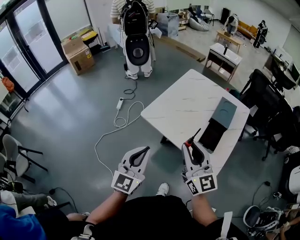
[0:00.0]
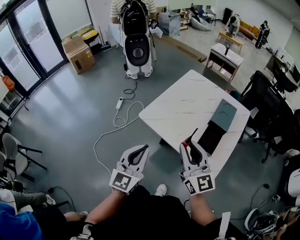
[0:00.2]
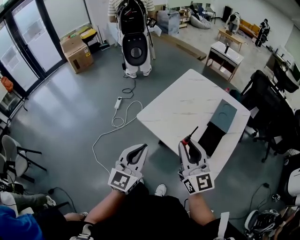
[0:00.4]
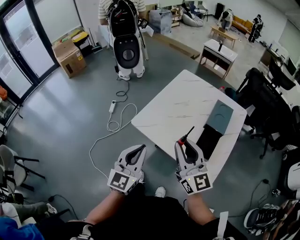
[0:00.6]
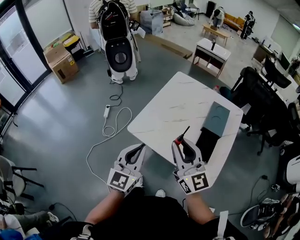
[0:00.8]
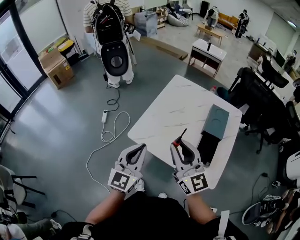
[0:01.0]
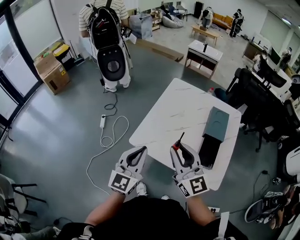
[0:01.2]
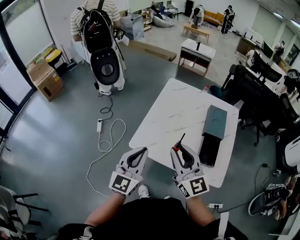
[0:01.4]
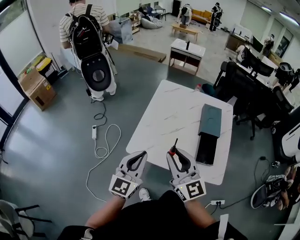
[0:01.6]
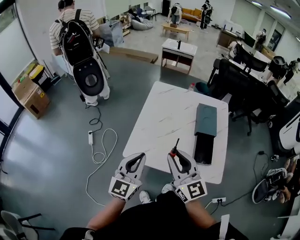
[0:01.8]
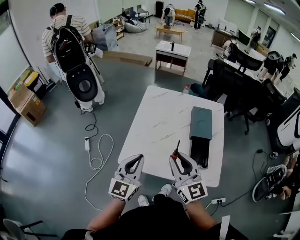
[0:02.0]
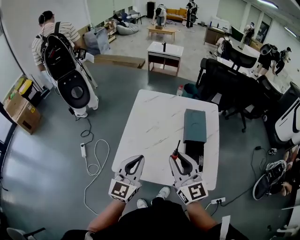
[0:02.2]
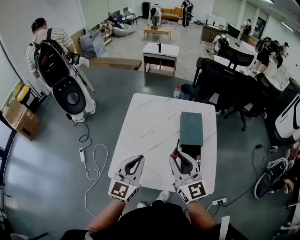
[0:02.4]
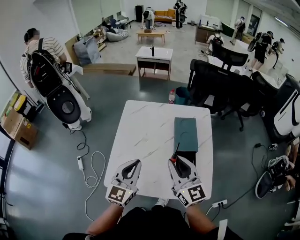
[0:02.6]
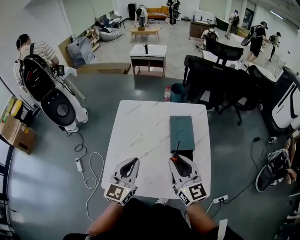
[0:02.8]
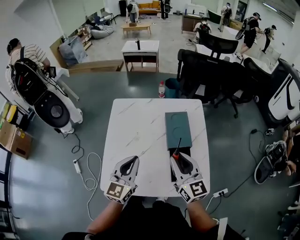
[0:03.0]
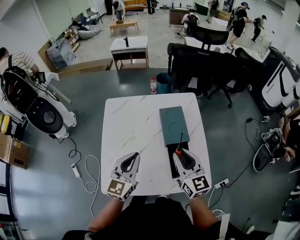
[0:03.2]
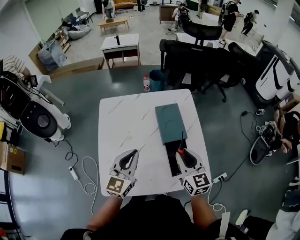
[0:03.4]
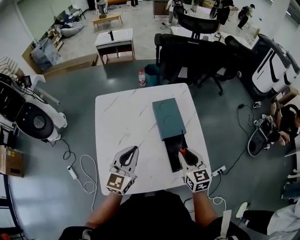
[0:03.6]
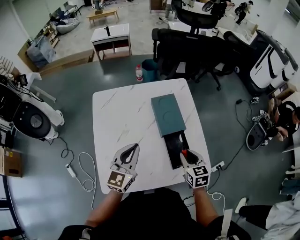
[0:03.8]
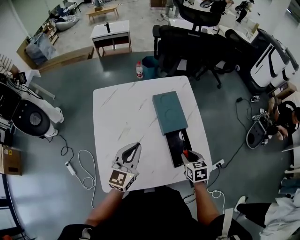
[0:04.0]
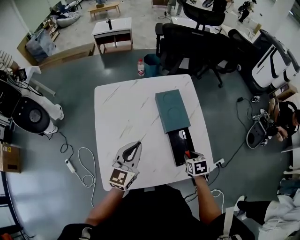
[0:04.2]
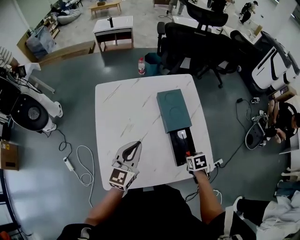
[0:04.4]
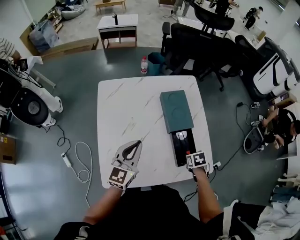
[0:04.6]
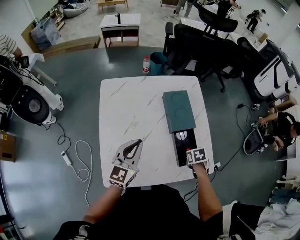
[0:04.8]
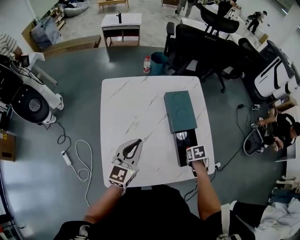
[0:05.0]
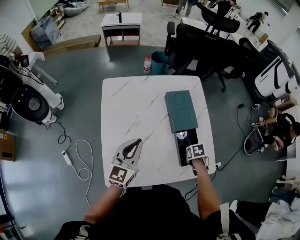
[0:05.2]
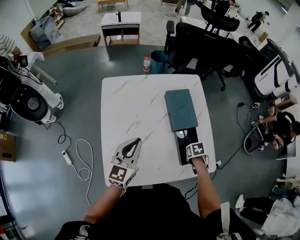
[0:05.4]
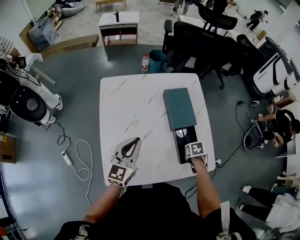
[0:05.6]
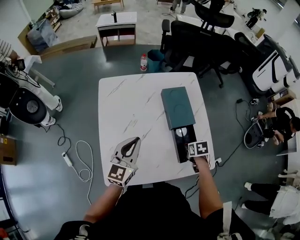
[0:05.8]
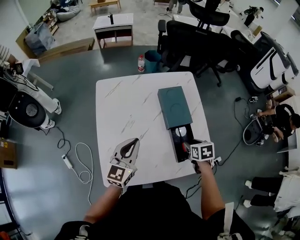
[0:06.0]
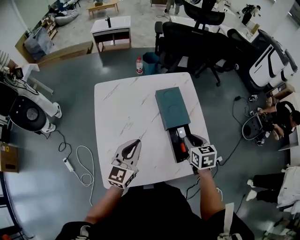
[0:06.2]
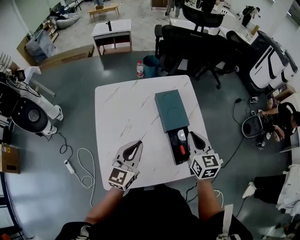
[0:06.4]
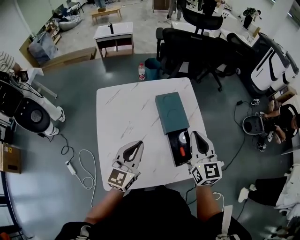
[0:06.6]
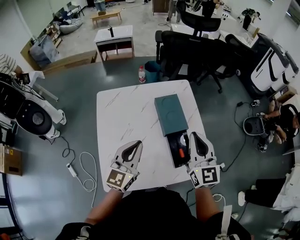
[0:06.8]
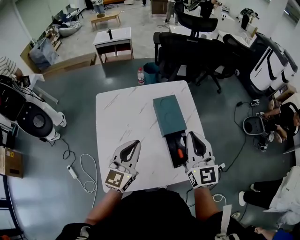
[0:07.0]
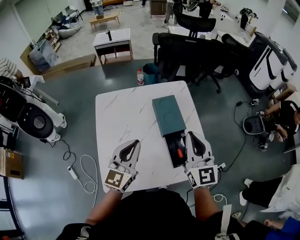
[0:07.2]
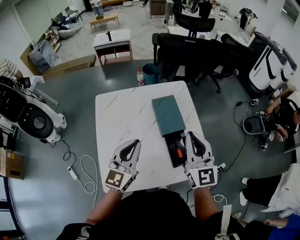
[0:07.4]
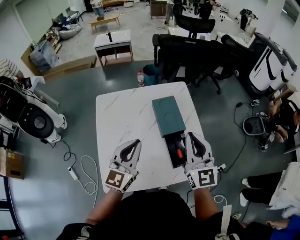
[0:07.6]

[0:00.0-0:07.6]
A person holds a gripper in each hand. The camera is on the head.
0:00.0 to 0:01.6: The right gripper moves forward and to the left, roughly 20 cm. Meanwhile the left gripper is displaced forward by about 20 cm, and rotates roughly 20 degrees.
0:01.6 to 0:03.0: The right gripper heads to the right and forward, covering roughly 25 cm, and rotates roughly 20 degrees. Meanwhile the left gripper moves forward and to the right, about 25 cm.
0:03.0 to 0:04.6: The left gripper moves downward, some 5 cm. Meanwhile the right gripper is displaced downward by approximately 30 cm, and angles its fingers downward, by some 70 degrees.
0:04.6 to 0:06.0: The right gripper goes about 10 cm upward.
0:06.0 to 0:07.6: The right gripper moves upward, about 30 cm, angles its fingers upward, by some 60 degrees, and closes up. The left gripper heads upward and to the right, covering about 10 cm.

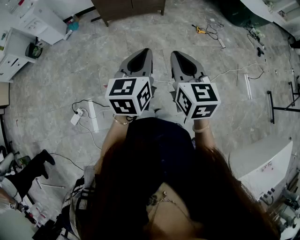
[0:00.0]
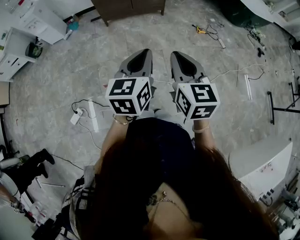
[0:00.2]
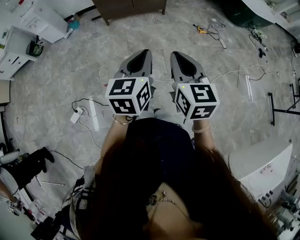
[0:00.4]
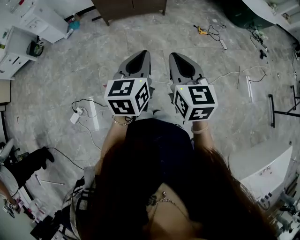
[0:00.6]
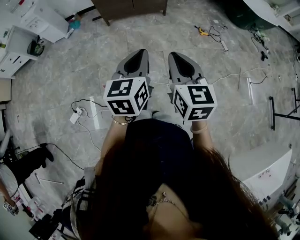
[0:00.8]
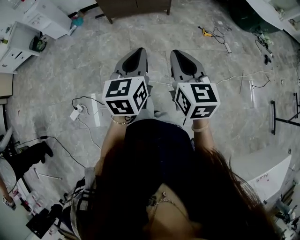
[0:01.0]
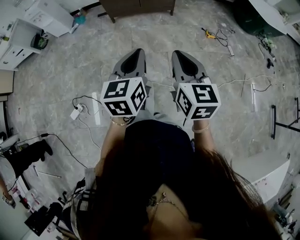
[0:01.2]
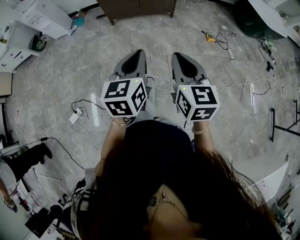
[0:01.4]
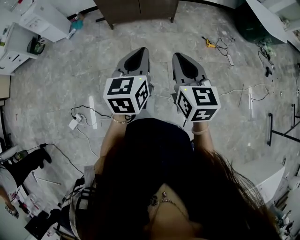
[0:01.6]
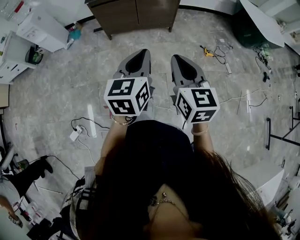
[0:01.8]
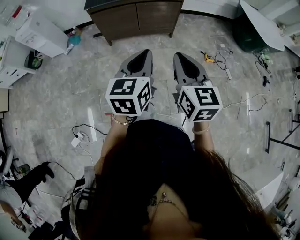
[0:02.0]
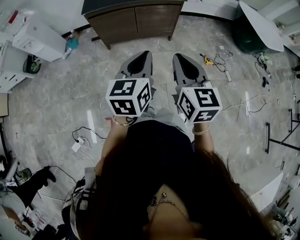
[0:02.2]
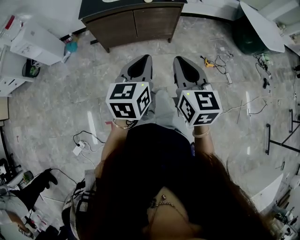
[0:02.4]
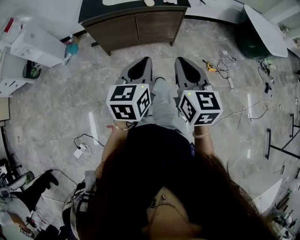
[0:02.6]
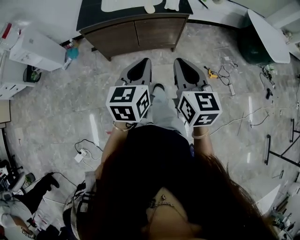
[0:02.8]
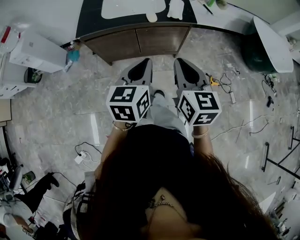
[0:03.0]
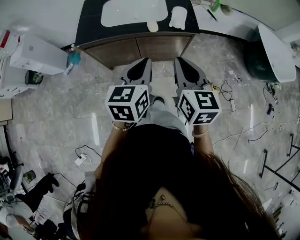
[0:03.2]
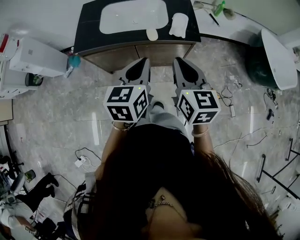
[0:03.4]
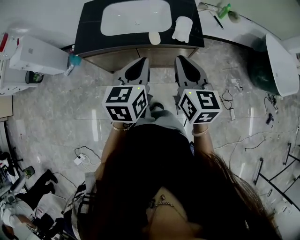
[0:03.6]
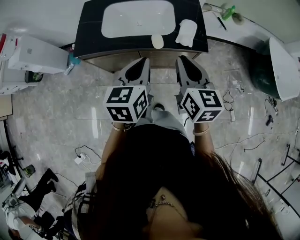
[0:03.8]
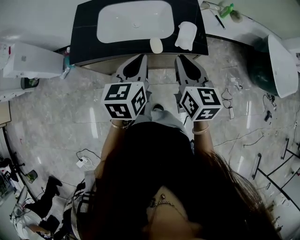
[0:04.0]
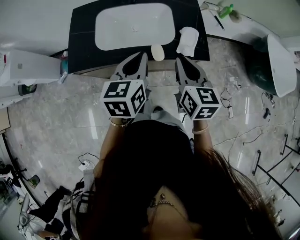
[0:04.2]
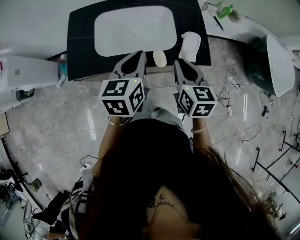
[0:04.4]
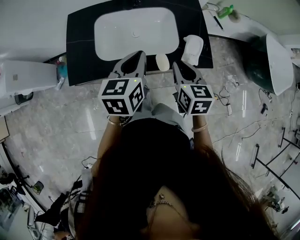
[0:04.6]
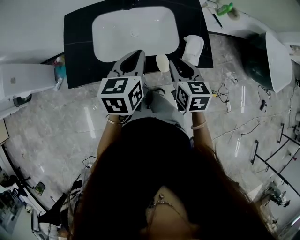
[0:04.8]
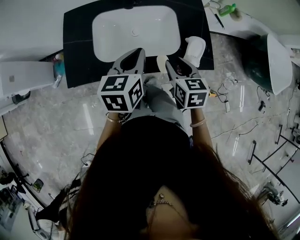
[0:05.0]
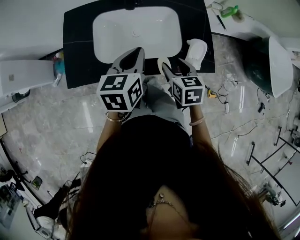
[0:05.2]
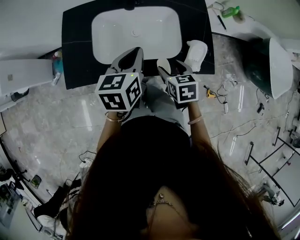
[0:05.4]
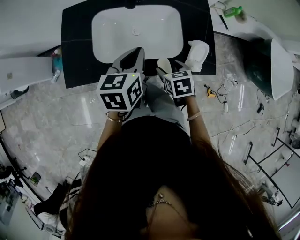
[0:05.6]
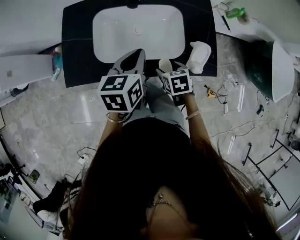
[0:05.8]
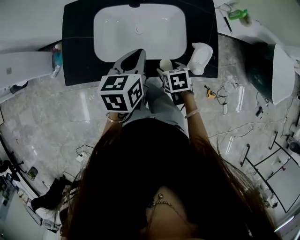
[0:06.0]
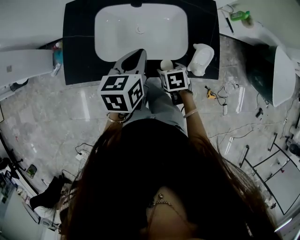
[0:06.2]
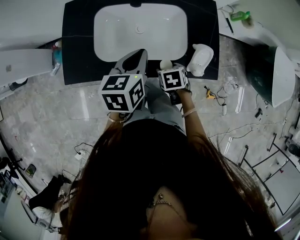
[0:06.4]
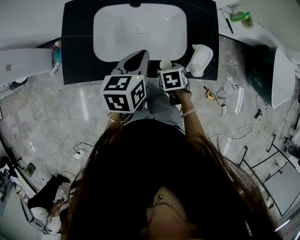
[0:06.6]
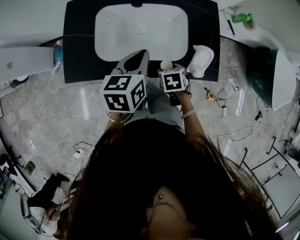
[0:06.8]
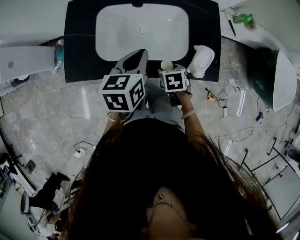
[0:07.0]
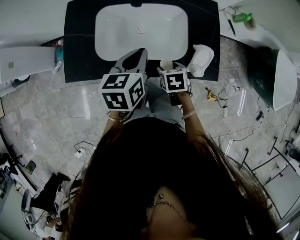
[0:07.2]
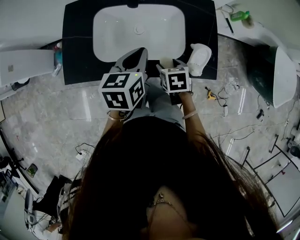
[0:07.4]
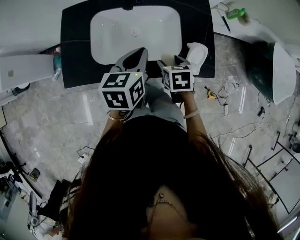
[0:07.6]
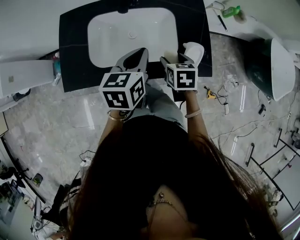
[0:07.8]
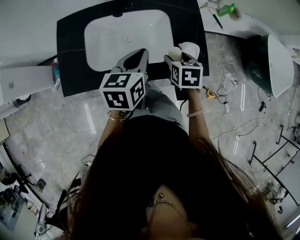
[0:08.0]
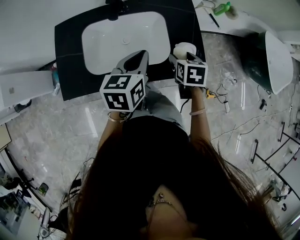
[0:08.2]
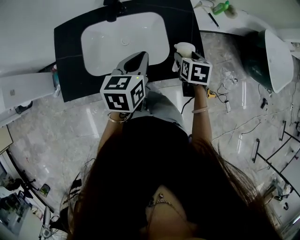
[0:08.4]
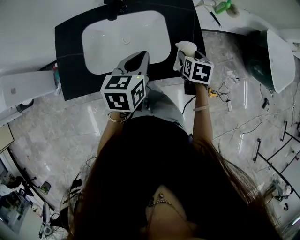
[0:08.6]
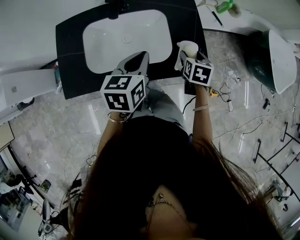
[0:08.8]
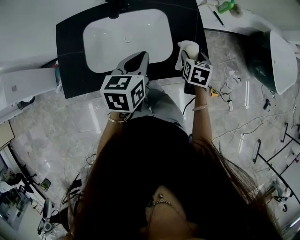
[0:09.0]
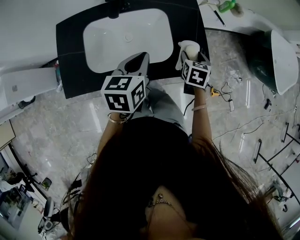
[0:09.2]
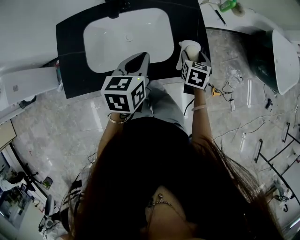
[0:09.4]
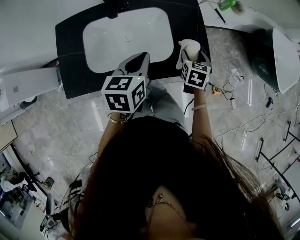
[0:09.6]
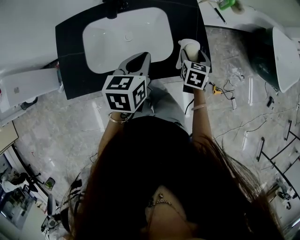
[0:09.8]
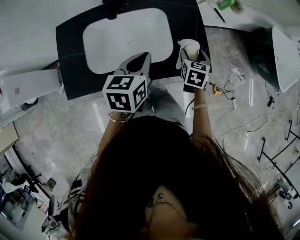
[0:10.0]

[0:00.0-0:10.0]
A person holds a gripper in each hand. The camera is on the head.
0:00.0 to 0:01.4: The grippers both shift forward by some 15 cm.
0:01.4 to 0:02.8: The pair of grippers is taken forward, about 40 cm.
0:02.8 to 0:04.2: The two grippers go roughly 40 cm forward.
0:04.2 to 0:05.8: The left gripper moves forward and downward, roughly 15 cm, while the right gripper travels downward by about 20 cm, points its fingers roughly 40 degrees further downward, and opens.
0:05.8 to 0:07.2: There are only small adjustments of the grippers.
0:07.2 to 0:08.6: The right gripper is displaced to the right, forward and upward by some 20 cm, and changes its angle by approximately 30 degrees, while the left gripper heads to the right, covering some 5 cm.
0:08.6 to 0:10.0: The grippers stay close to where they were, moving slightly.

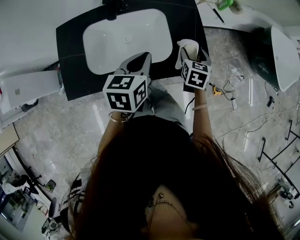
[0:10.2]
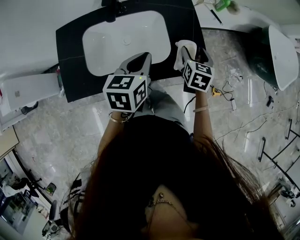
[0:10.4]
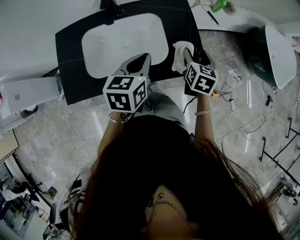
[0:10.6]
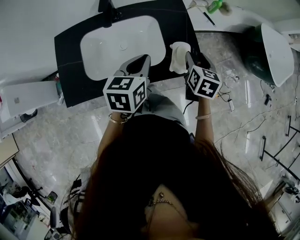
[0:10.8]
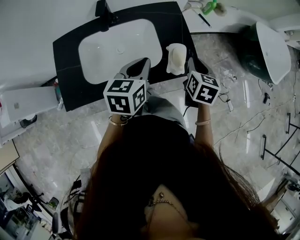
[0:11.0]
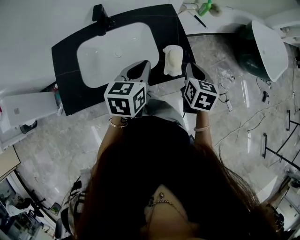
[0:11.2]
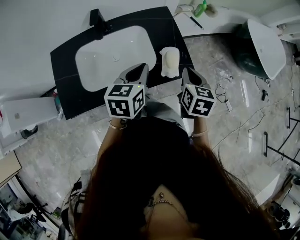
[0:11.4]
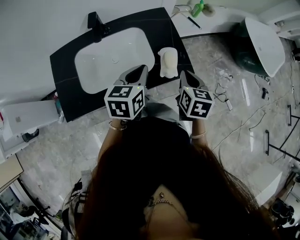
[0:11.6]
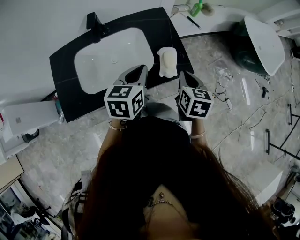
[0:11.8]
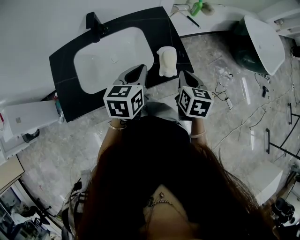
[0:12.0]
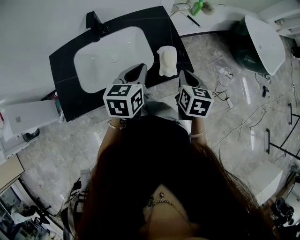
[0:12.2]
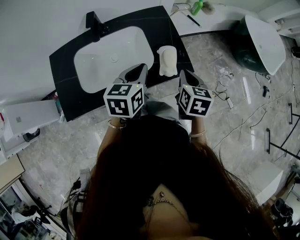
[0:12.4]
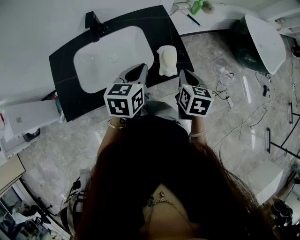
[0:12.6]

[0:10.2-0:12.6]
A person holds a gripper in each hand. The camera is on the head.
0:10.2 to 0:11.4: The right gripper shifts roughly 15 cm upward and backward, and closes up. The left gripper changes place by roughly 5 cm.
0:11.4 to 0:12.6: The grippers stay close to where they were, moving slightly.

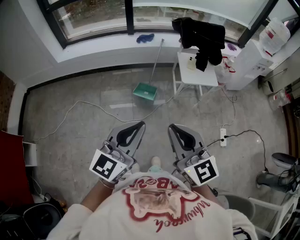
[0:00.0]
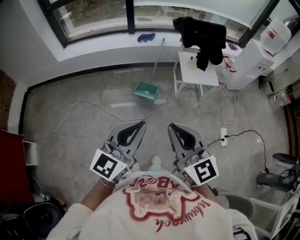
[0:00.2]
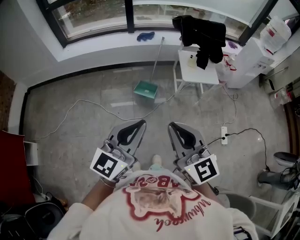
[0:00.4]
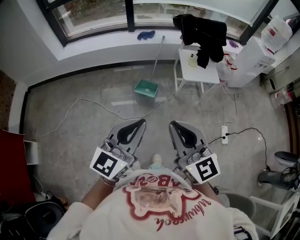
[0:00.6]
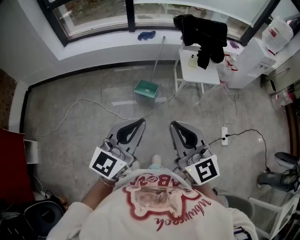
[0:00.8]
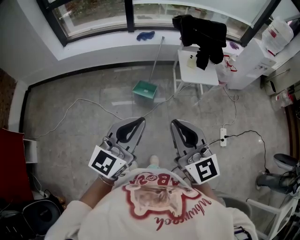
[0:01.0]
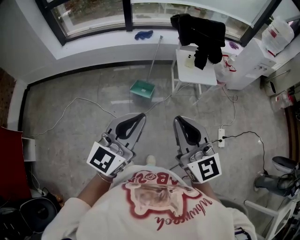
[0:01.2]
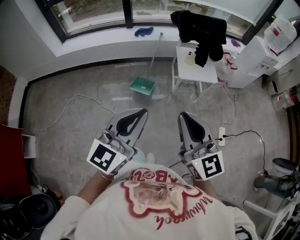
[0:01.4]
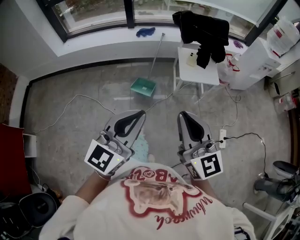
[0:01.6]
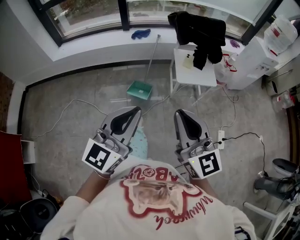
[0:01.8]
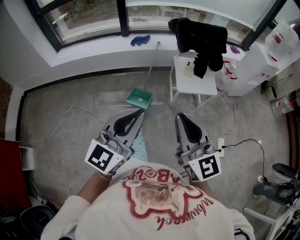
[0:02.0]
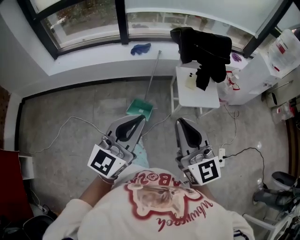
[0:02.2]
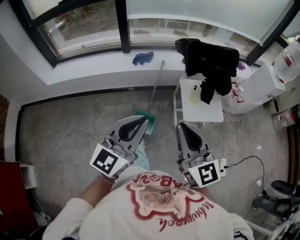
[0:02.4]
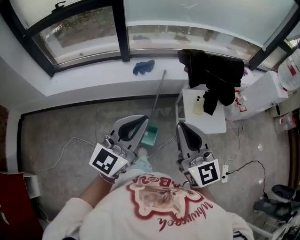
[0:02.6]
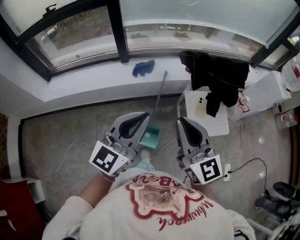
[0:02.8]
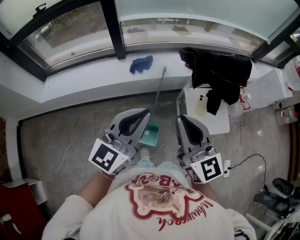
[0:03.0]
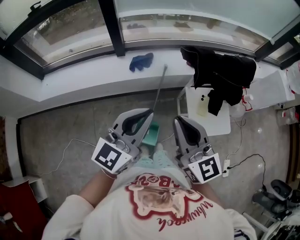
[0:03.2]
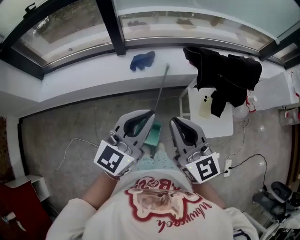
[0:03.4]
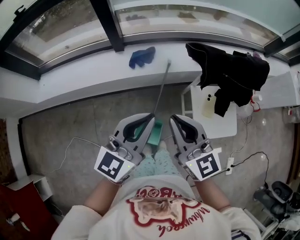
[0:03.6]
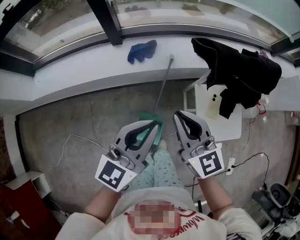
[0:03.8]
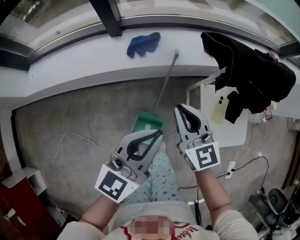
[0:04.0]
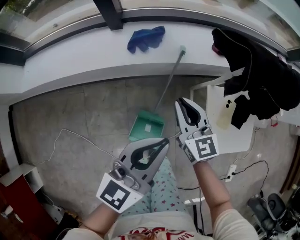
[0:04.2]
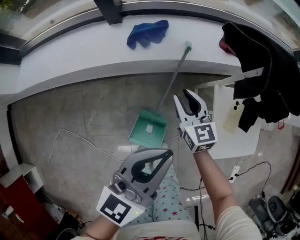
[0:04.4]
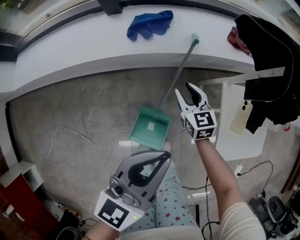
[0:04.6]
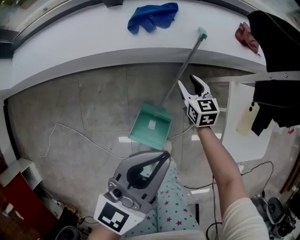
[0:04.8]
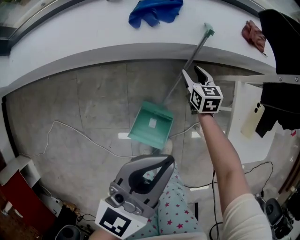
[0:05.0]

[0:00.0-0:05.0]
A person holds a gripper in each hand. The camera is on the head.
0:00.0 to 0:01.6: The two grippers go roughly 10 cm to the right and forward.
0:01.6 to 0:03.4: Both grippers are carried forward, approximately 60 cm.
0:03.4 to 0:05.0: The right gripper heads downward and forward, covering roughly 70 cm, angles its fingers downward, by about 40 degrees, and opens. Meanwhile the left gripper is displaced downward by roughly 30 cm, and changes its angle by some 20 degrees.
